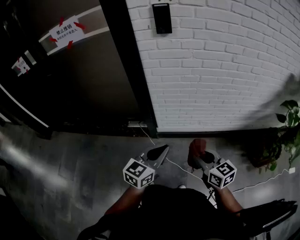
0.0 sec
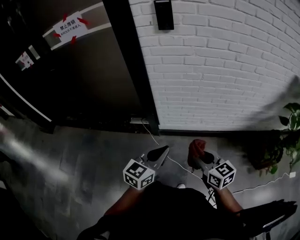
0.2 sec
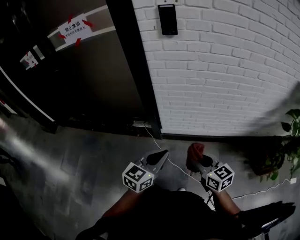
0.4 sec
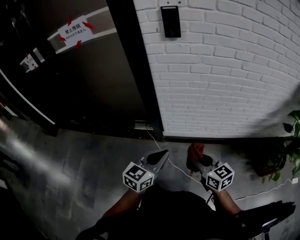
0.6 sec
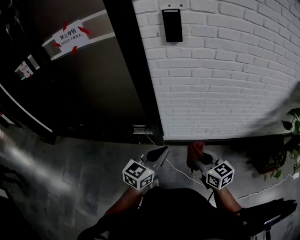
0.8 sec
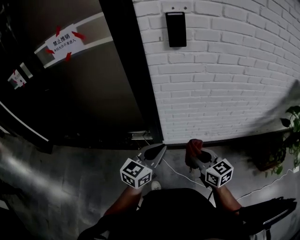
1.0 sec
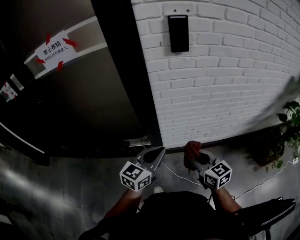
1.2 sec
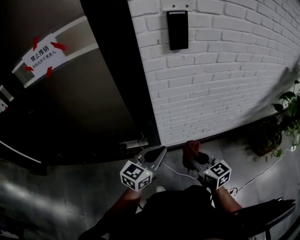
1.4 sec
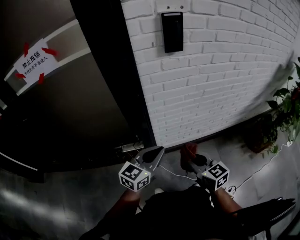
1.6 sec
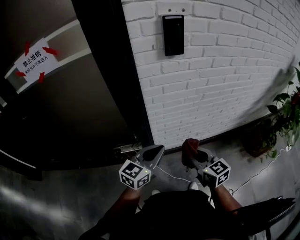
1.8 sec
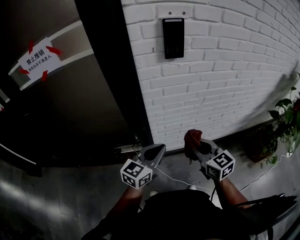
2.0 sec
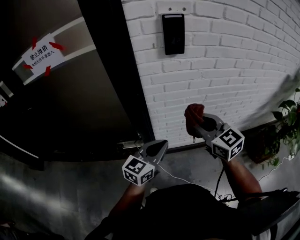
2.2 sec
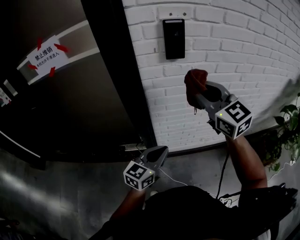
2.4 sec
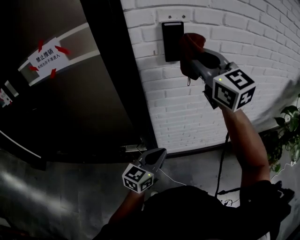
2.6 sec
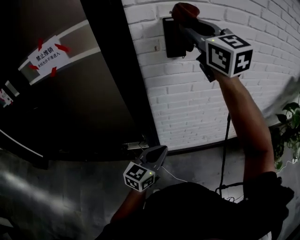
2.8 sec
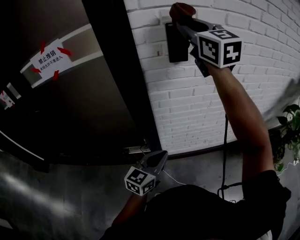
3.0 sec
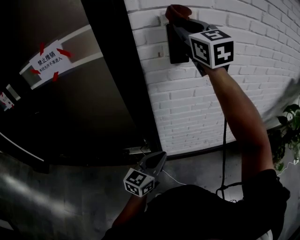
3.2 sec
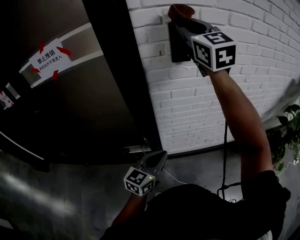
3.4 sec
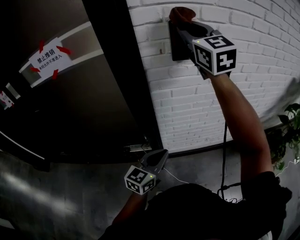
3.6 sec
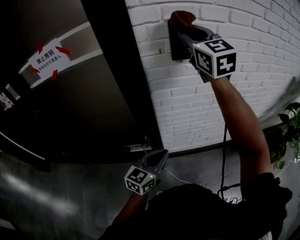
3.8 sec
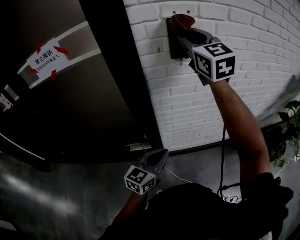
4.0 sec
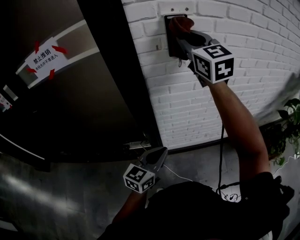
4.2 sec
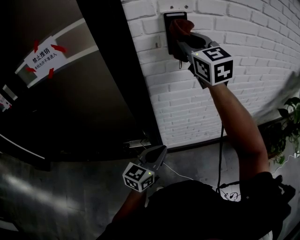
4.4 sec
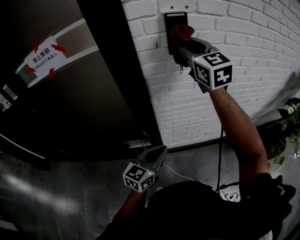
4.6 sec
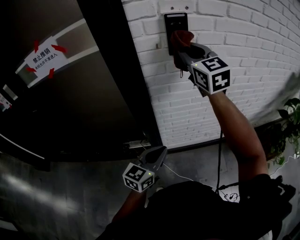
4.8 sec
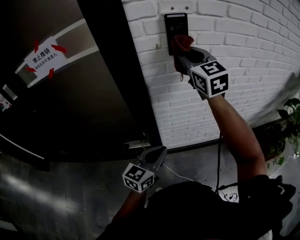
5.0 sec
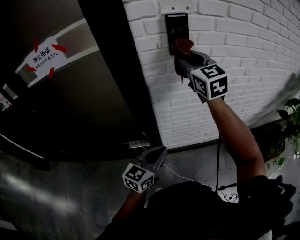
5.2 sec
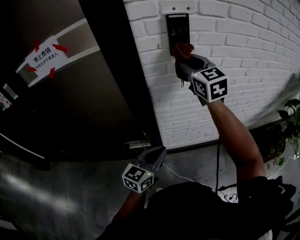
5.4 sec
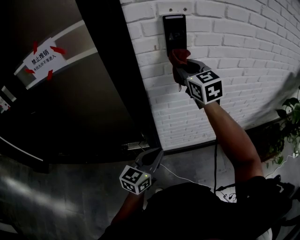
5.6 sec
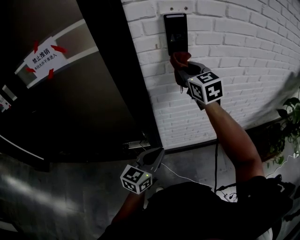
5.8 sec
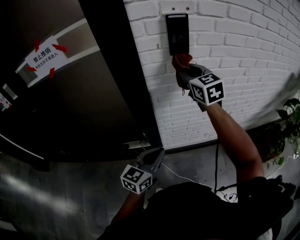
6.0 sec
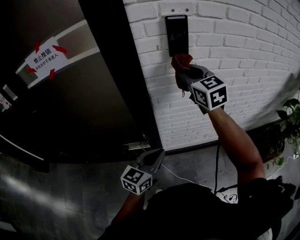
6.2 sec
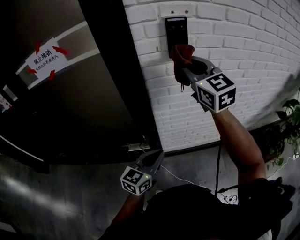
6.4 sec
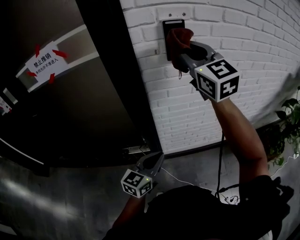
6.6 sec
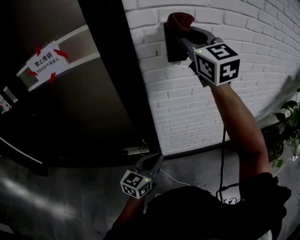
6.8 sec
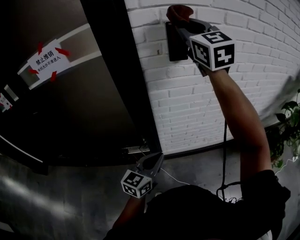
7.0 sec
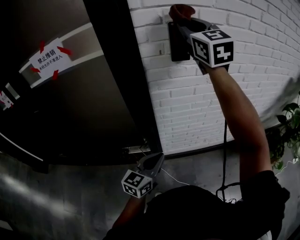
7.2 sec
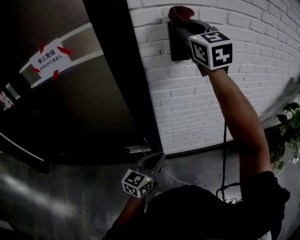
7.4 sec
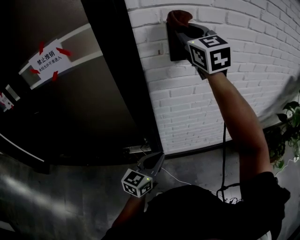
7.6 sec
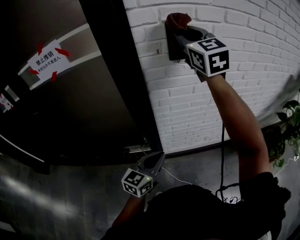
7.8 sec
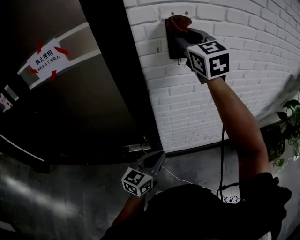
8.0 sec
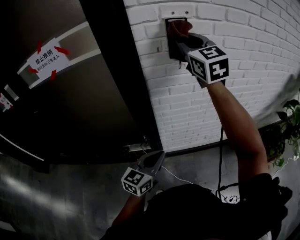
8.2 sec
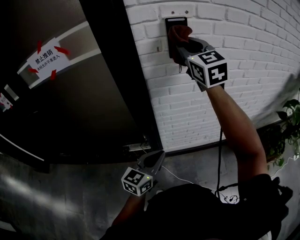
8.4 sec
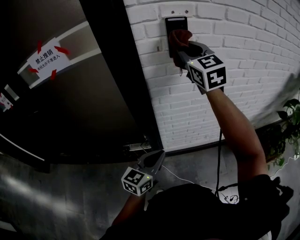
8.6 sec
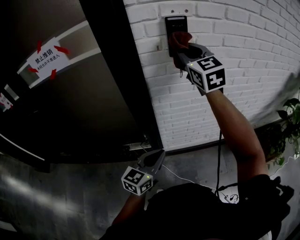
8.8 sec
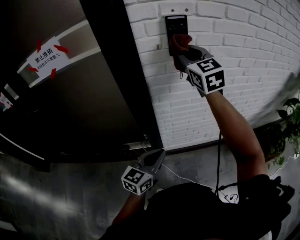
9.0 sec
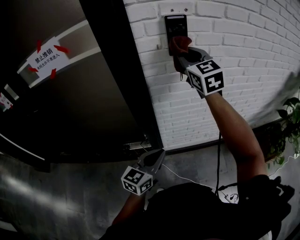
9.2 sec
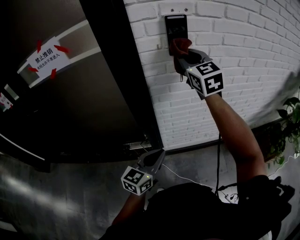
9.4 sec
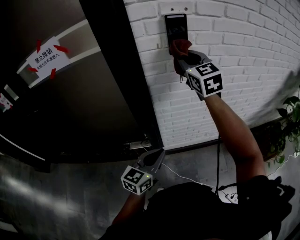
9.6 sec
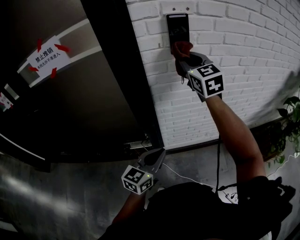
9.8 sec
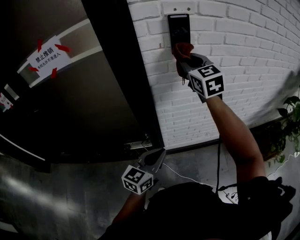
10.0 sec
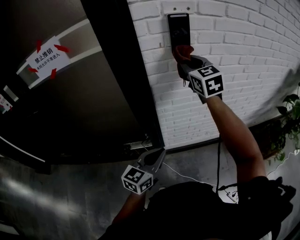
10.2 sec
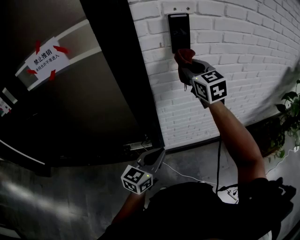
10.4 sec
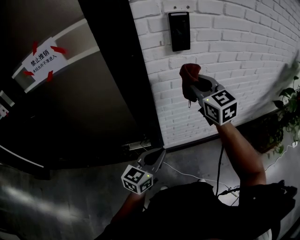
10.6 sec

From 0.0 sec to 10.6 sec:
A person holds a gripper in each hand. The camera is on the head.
From 0.0 sec to 1.6 sec: The grippers both shift forward and to the left by approximately 20 cm.
From 1.6 sec to 3.0 sec: The right gripper is displaced upward and forward by some 50 cm, and turns by some 40 degrees.
From 3.0 sec to 4.6 sec: The right gripper goes some 10 cm downward.
From 4.6 sec to 6.0 sec: The right gripper travels downward by about 10 cm.
From 6.0 sec to 7.6 sec: The right gripper heads upward, covering about 20 cm.
From 7.6 sec to 9.0 sec: The right gripper travels downward by roughly 10 cm.
From 9.0 sec to 10.6 sec: The right gripper is displaced downward and backward by approximately 15 cm.

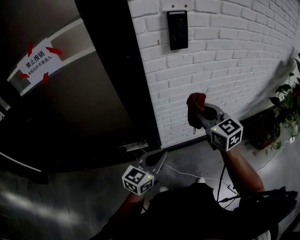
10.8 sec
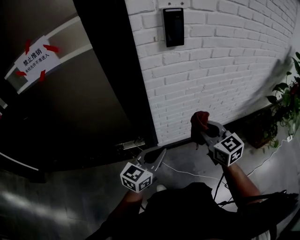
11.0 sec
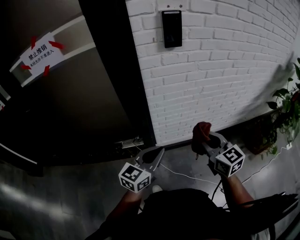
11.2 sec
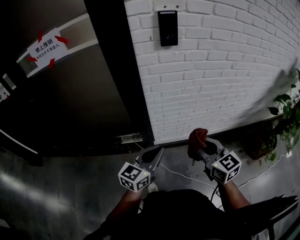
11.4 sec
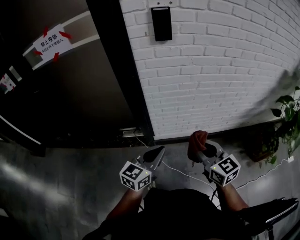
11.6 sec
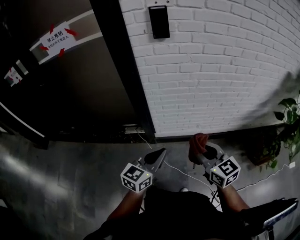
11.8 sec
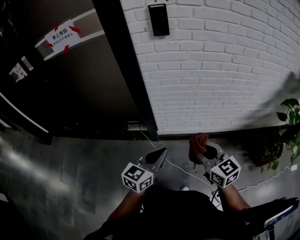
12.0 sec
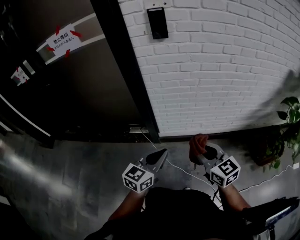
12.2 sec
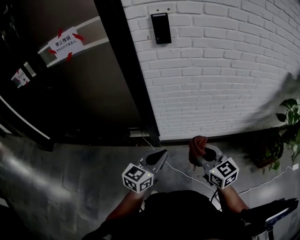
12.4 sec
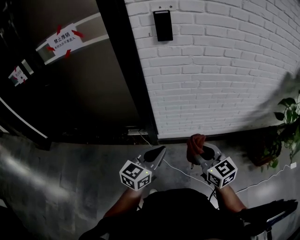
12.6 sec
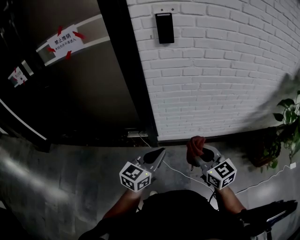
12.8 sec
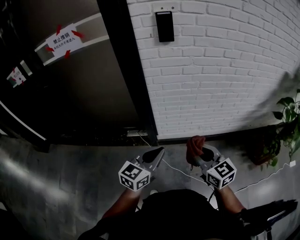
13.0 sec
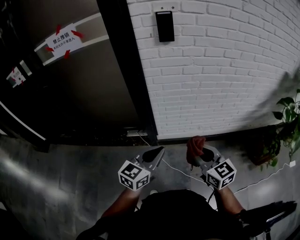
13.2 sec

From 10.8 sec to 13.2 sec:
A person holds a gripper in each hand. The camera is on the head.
From 10.8 sec to 12.0 sec: The left gripper moves to the right and backward, roughly 20 cm. Meanwhile the right gripper goes roughly 30 cm backward, to the right and downward.
From 12.0 sec to 13.2 sec: The left gripper moves approximately 5 cm.

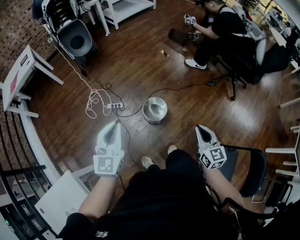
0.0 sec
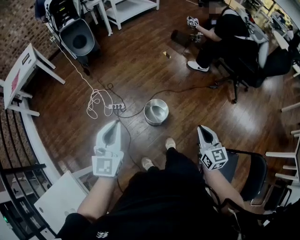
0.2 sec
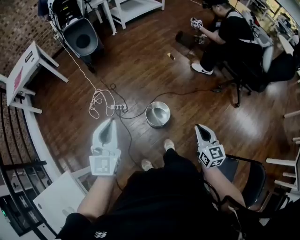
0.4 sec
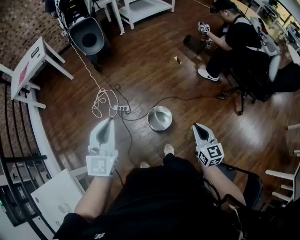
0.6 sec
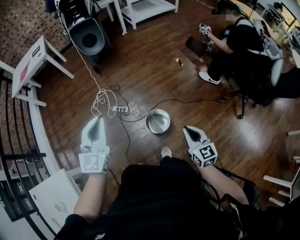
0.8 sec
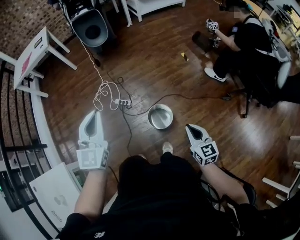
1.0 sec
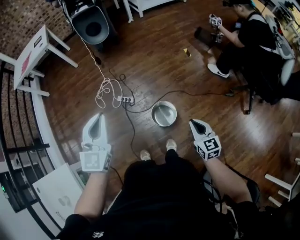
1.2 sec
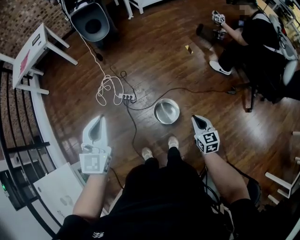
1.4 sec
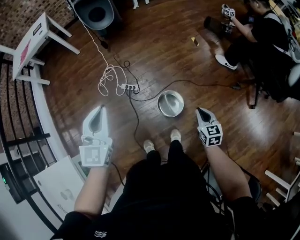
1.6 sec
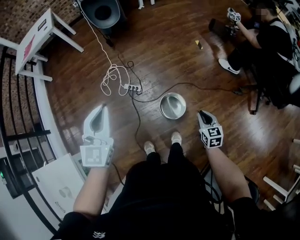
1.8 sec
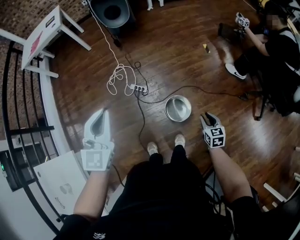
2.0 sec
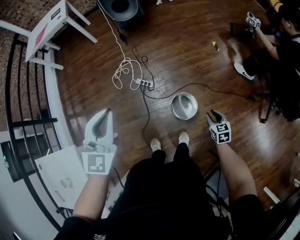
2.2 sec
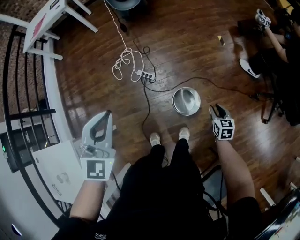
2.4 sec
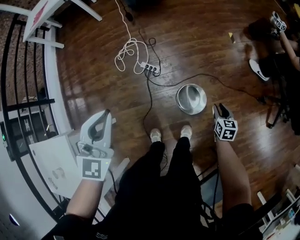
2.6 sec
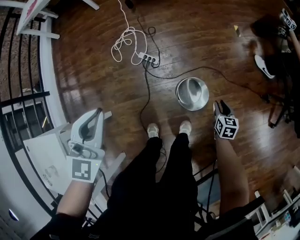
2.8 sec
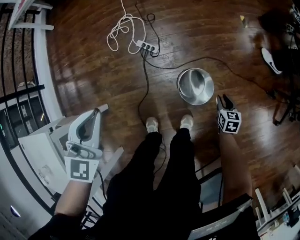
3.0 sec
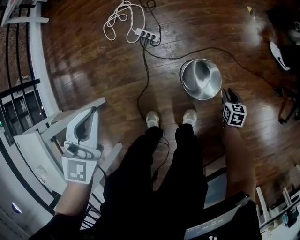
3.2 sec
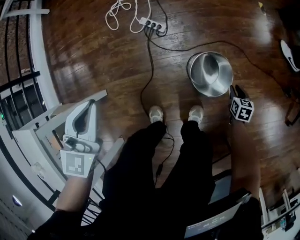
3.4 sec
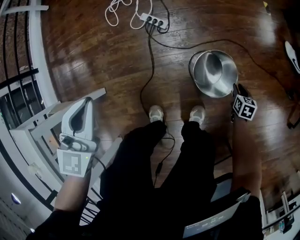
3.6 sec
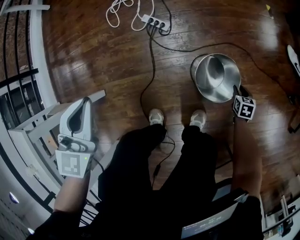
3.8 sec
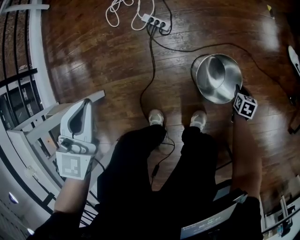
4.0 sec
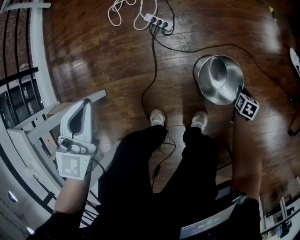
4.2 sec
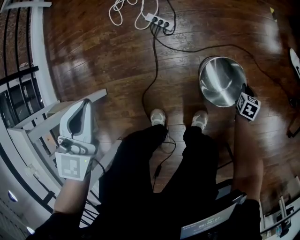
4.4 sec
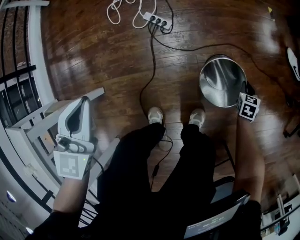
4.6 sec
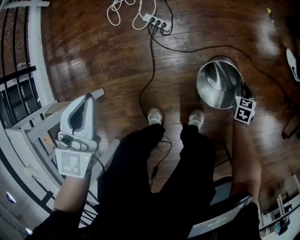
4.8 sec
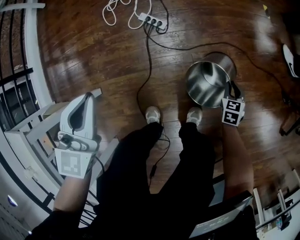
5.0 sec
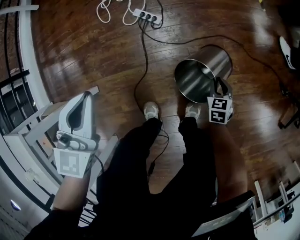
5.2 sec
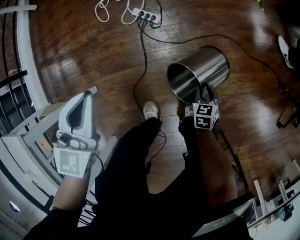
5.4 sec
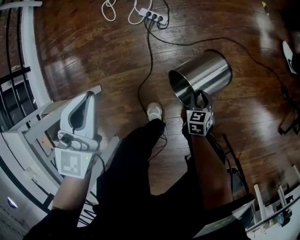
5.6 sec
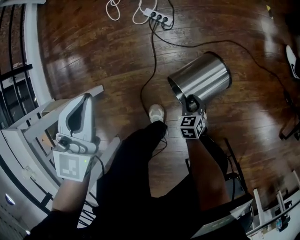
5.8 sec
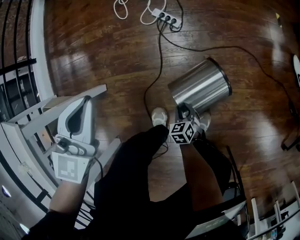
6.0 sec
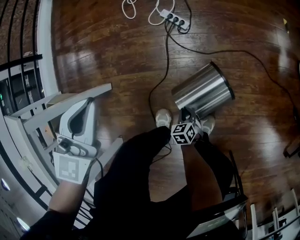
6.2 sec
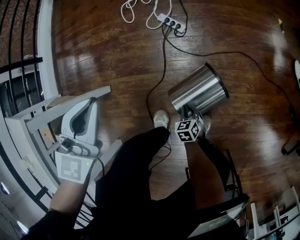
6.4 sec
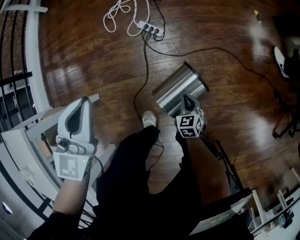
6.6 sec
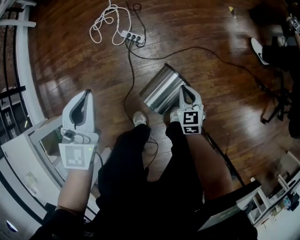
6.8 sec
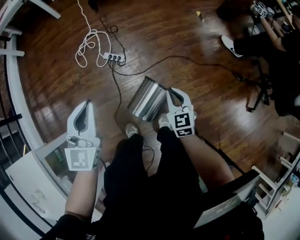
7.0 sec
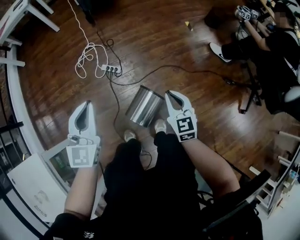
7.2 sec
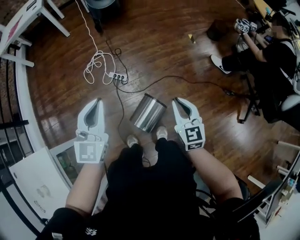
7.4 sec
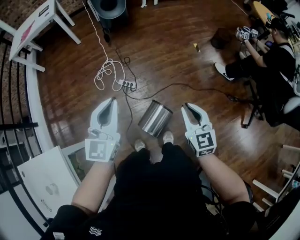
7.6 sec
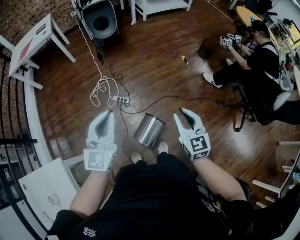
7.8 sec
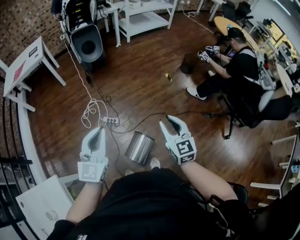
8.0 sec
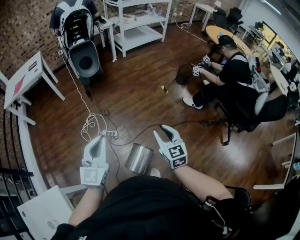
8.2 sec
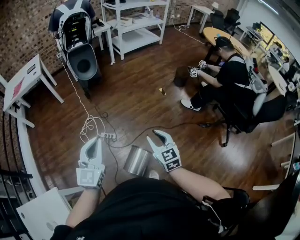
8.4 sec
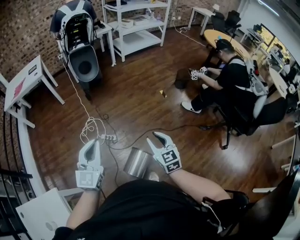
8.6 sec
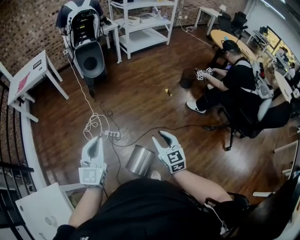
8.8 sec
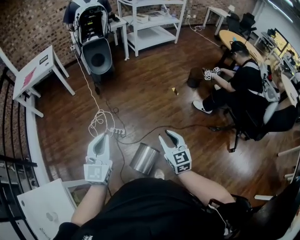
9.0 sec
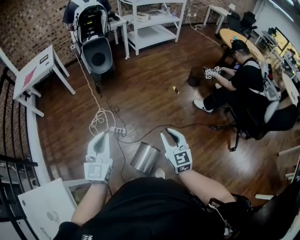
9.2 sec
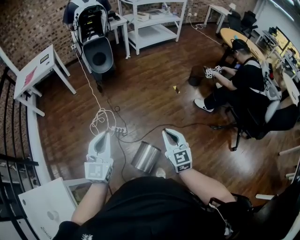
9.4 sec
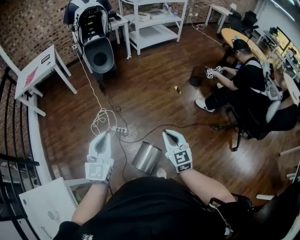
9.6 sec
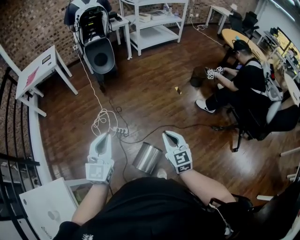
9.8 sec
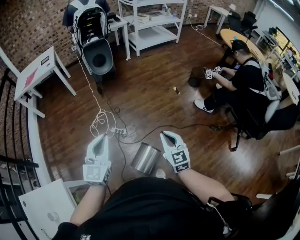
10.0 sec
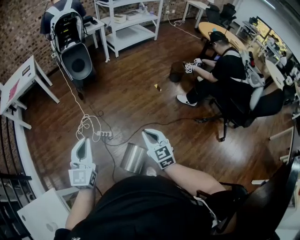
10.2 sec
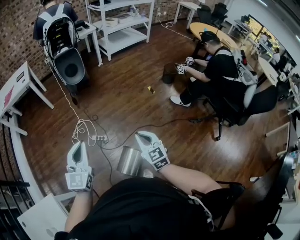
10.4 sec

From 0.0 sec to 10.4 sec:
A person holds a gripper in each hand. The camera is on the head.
From 0.0 sec to 1.4 sec: The left gripper goes roughly 10 cm forward, while the right gripper heads forward and downward, covering roughly 20 cm, and turns by about 20 degrees.
From 1.4 sec to 3.0 sec: The left gripper heads downward, covering about 15 cm, while the right gripper travels downward by some 30 cm, and opens its fingers.
From 3.0 sec to 4.4 sec: The left gripper shifts roughly 15 cm downward and to the left; the right gripper travels downward by approximately 15 cm, and closes up.
From 4.4 sec to 6.0 sec: The right gripper travels to the left and backward by some 40 cm, turns by about 40 degrees, and opens its fingers.
From 6.0 sec to 7.4 sec: The left gripper heads upward and to the right, covering roughly 25 cm, and changes its angle by approximately 20 degrees, while the right gripper shifts about 50 cm upward, angles its fingers upward, by roughly 40 degrees, and closes its fingers.
From 7.4 sec to 9.0 sec: Both grippers move upward, roughly 10 cm. The right gripper opens its fingers.
From 9.0 sec to 10.4 sec: The right gripper closes.
